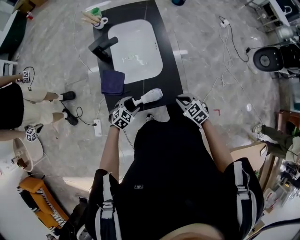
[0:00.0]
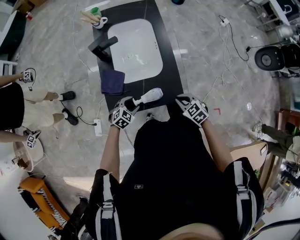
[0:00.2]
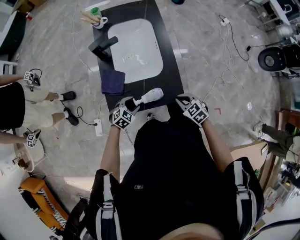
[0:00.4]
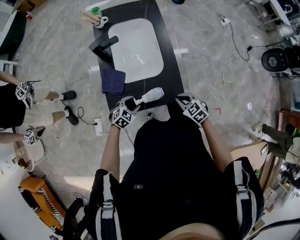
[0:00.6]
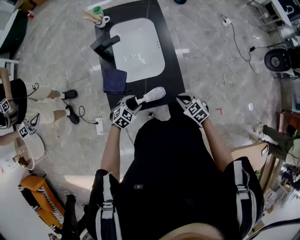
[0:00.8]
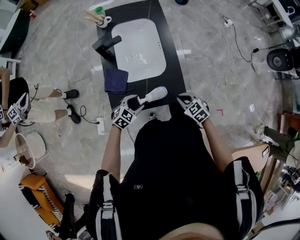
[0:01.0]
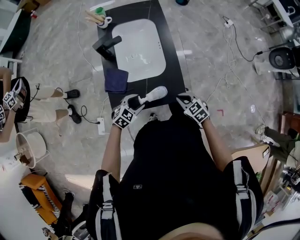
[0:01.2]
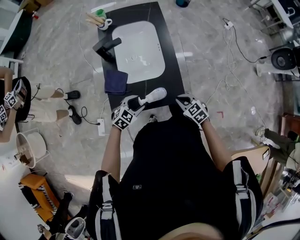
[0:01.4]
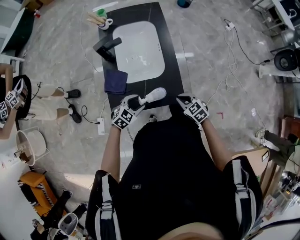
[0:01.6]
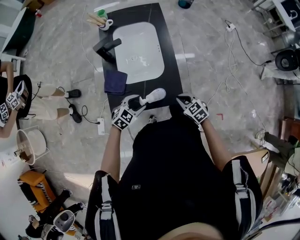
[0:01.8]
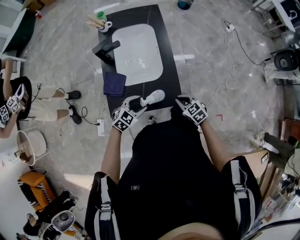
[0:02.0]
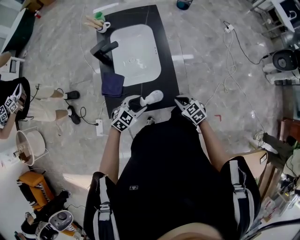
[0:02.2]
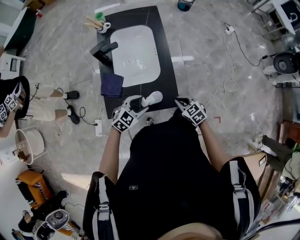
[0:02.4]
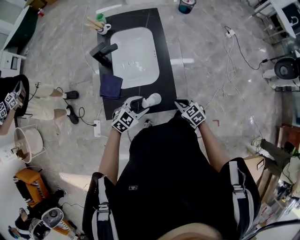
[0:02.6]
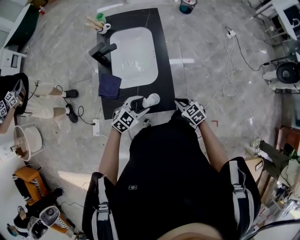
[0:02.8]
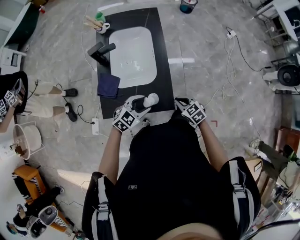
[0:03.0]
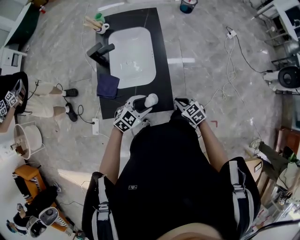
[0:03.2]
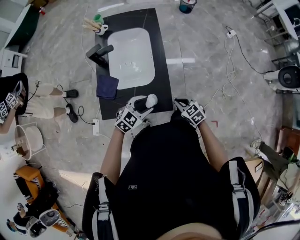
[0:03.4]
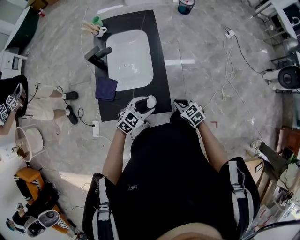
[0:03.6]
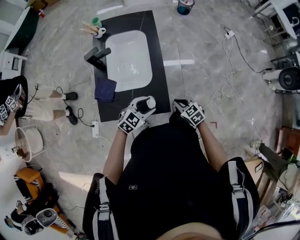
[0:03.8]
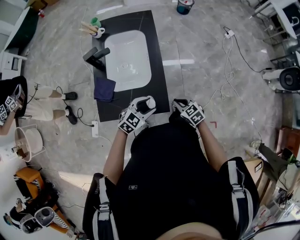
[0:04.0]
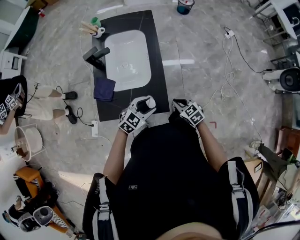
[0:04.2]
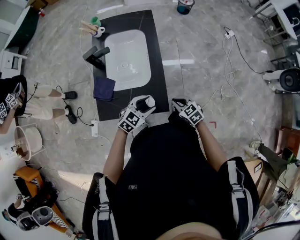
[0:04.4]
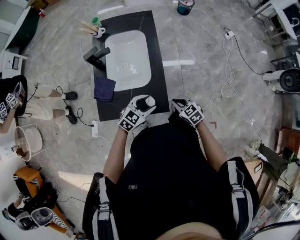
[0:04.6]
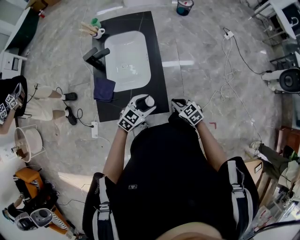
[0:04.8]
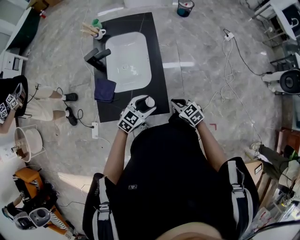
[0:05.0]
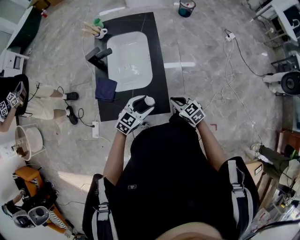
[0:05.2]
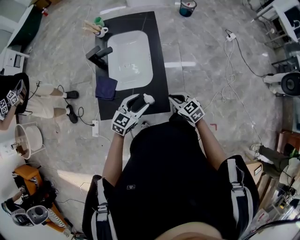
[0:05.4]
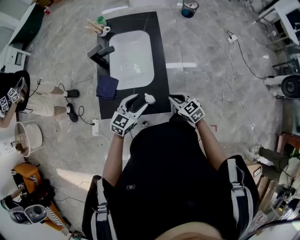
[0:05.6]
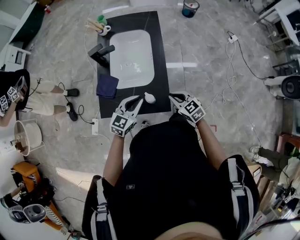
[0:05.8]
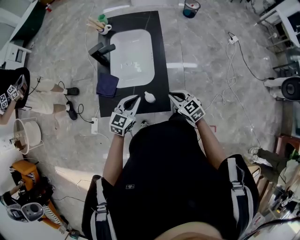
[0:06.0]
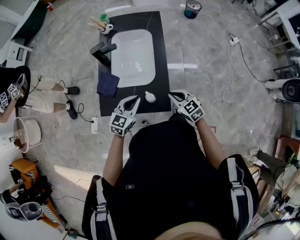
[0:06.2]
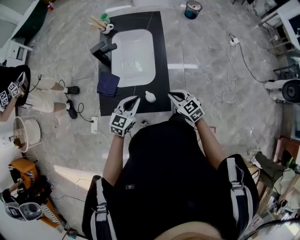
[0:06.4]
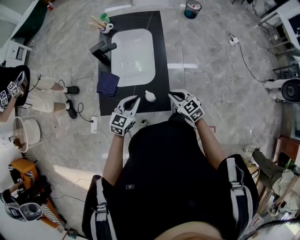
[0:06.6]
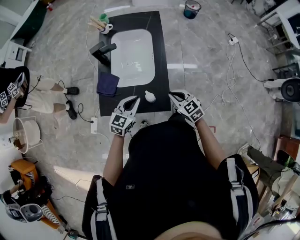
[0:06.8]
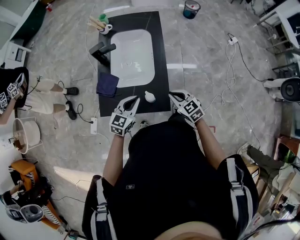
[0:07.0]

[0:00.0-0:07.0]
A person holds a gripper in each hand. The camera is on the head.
0:00.0 to 0:01.4: The left gripper goes approximately 5 cm upward.
0:01.4 to 0:02.8: The left gripper heads to the right and upward, covering about 10 cm; the right gripper travels to the right by roughly 5 cm.
0:02.8 to 0:04.2: The left gripper travels to the right by approximately 10 cm.
0:04.2 to 0:05.6: The left gripper travels to the left by roughly 5 cm, and rotates roughly 20 degrees. The right gripper goes about 5 cm upward.
0:05.6 to 0:07.0: The left gripper closes its fingers.

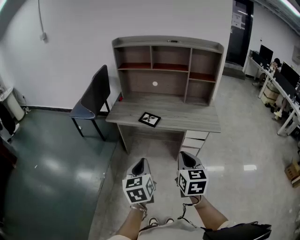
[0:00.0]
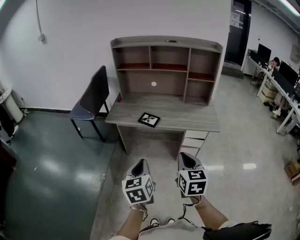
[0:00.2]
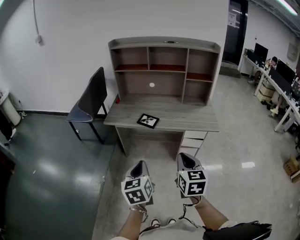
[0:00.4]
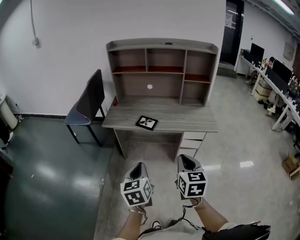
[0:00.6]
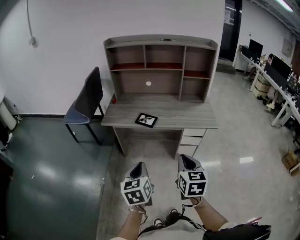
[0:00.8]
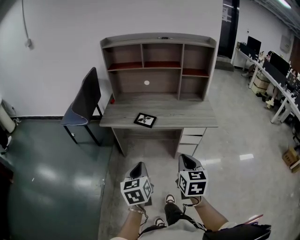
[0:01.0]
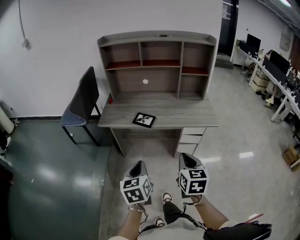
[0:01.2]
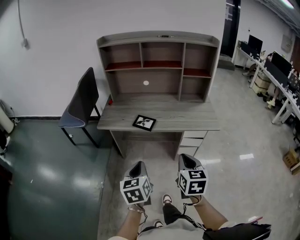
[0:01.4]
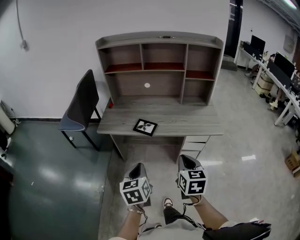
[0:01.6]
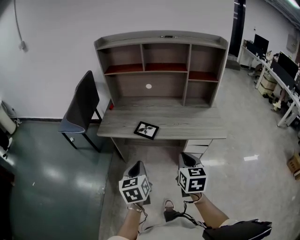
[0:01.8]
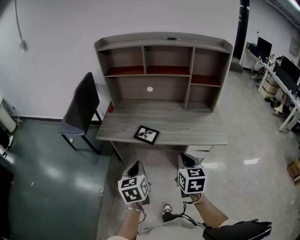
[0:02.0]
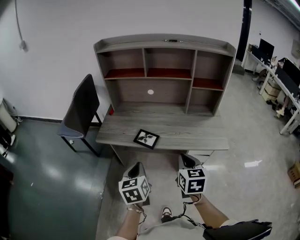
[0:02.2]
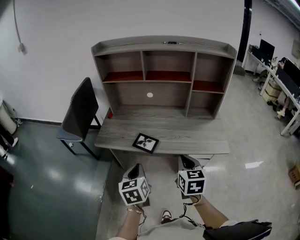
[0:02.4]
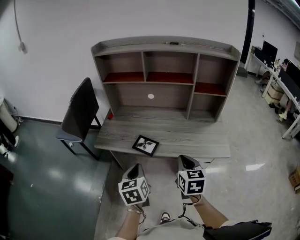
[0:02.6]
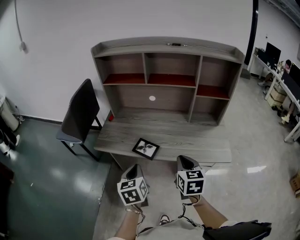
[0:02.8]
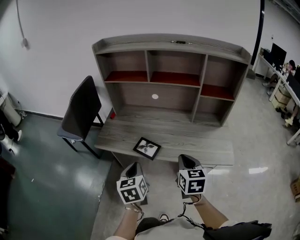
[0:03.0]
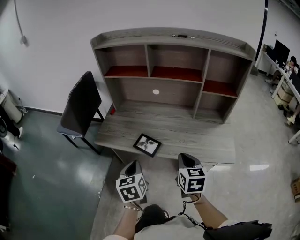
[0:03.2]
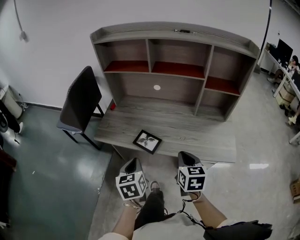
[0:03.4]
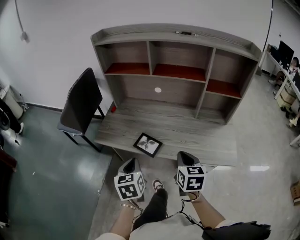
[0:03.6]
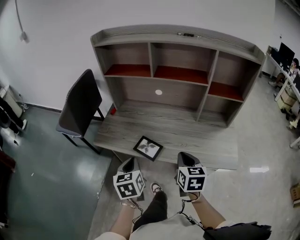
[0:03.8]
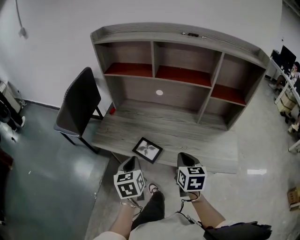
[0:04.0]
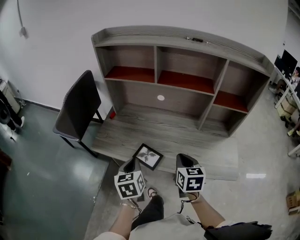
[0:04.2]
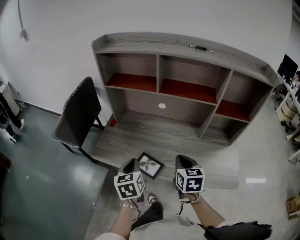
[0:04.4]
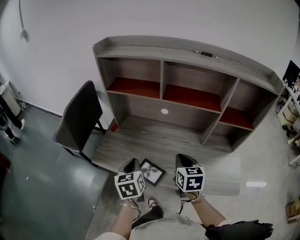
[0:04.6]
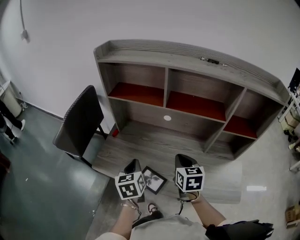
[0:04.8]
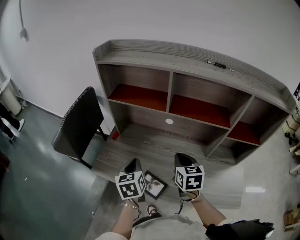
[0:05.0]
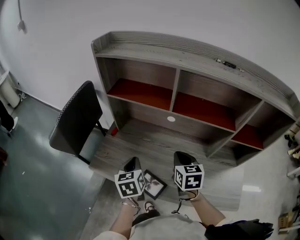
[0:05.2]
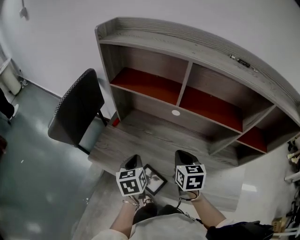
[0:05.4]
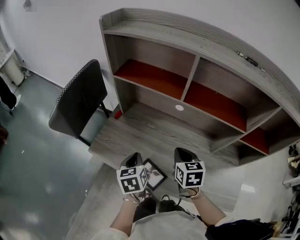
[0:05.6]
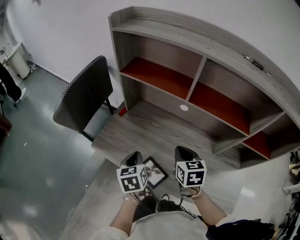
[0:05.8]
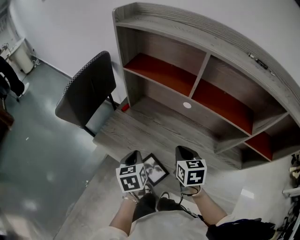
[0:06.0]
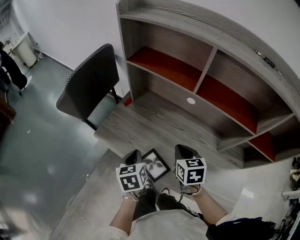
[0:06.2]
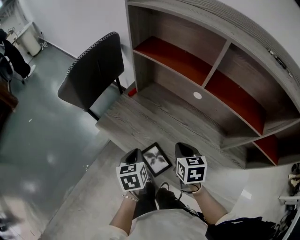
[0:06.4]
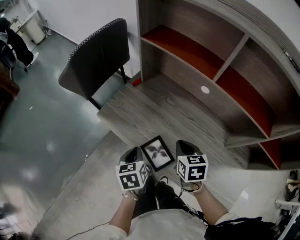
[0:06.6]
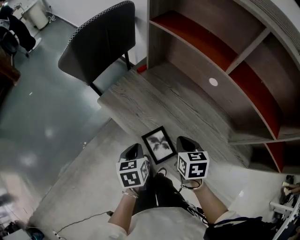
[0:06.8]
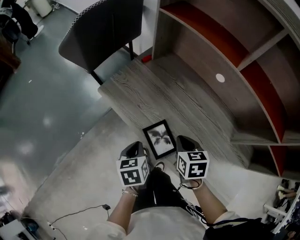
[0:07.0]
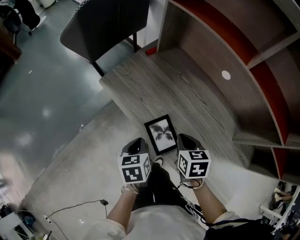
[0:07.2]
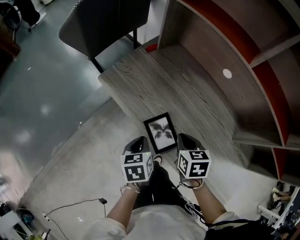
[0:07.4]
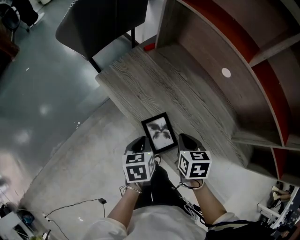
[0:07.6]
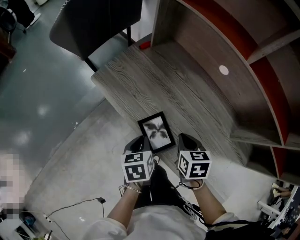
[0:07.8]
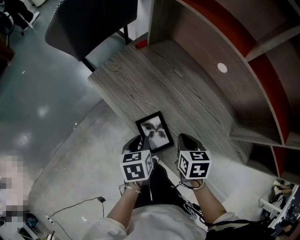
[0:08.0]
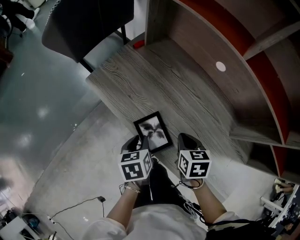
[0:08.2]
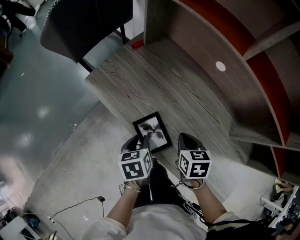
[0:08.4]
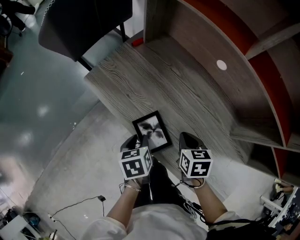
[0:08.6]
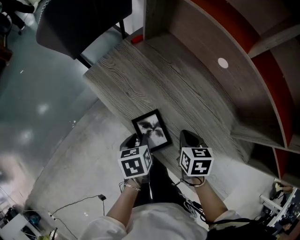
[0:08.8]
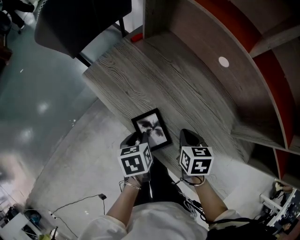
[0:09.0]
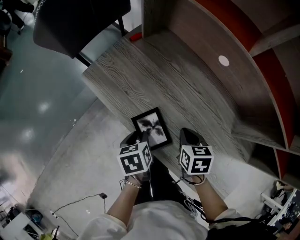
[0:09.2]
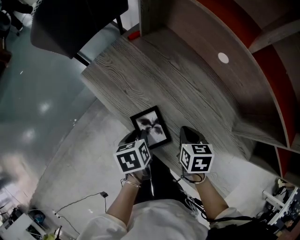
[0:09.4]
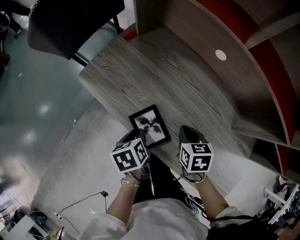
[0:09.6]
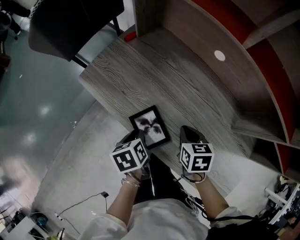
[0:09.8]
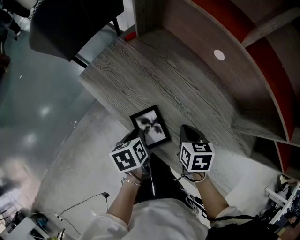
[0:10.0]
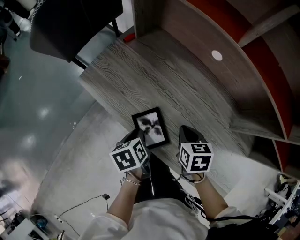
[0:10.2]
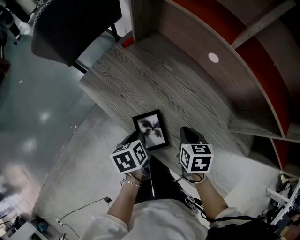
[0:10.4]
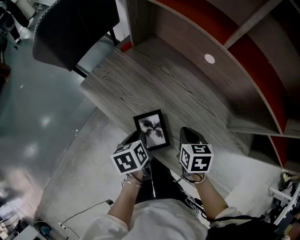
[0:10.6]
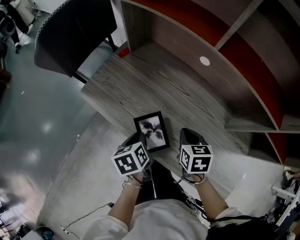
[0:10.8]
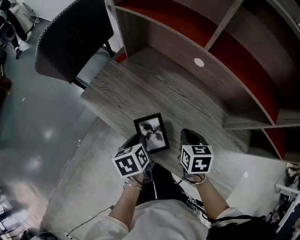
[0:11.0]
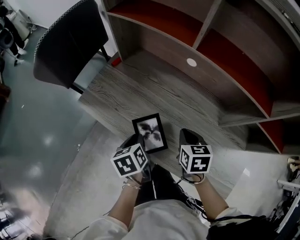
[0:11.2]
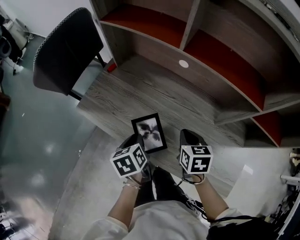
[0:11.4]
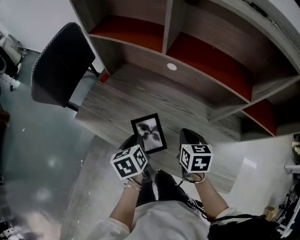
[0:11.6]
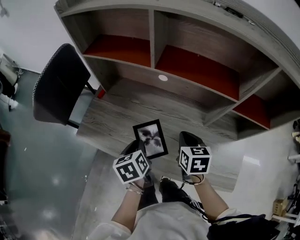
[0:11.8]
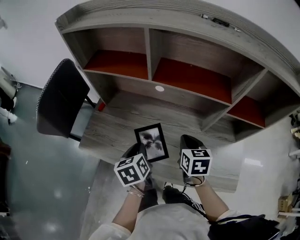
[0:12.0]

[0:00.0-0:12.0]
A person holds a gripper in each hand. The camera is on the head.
0:00.0 to 0:01.6: The grippers both shift forward and downward by some 10 cm.
0:01.6 to 0:03.0: Both grippers move forward, approximately 20 cm.
0:03.0 to 0:04.4: Both grippers move forward, approximately 15 cm.
0:04.4 to 0:06.0: The left gripper is displaced forward and downward by about 10 cm. The right gripper travels forward by roughly 15 cm.
0:06.0 to 0:07.6: Both grippers move downward and backward, some 15 cm. The left gripper swivels approximately 20 degrees. Meanwhile the right gripper turns by roughly 20 degrees.
0:07.6 to 0:09.0: The left gripper opens up; the right gripper shifts by about 5 cm.
0:09.0 to 0:10.4: The grippers move only a little.
0:10.4 to 0:12.0: The right gripper goes about 15 cm upward and to the right, and rotates about 30 degrees; the left gripper moves upward, to the right and forward, some 20 cm, and changes its angle by roughly 30 degrees.

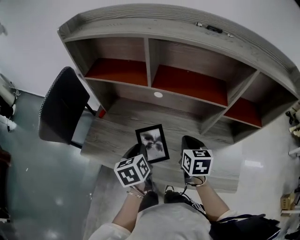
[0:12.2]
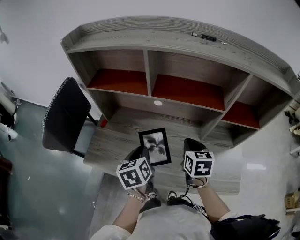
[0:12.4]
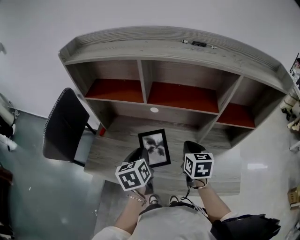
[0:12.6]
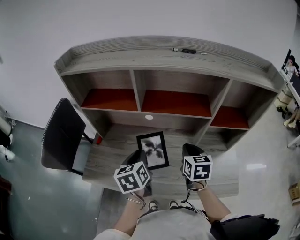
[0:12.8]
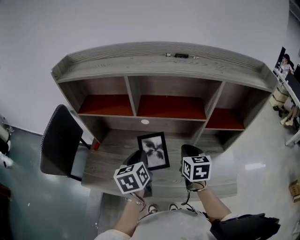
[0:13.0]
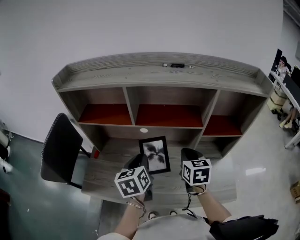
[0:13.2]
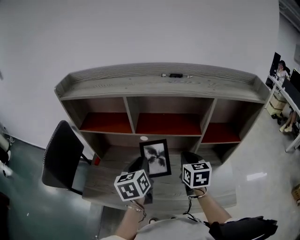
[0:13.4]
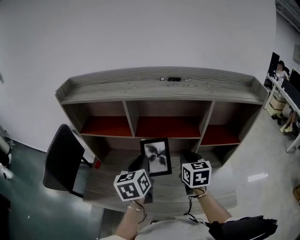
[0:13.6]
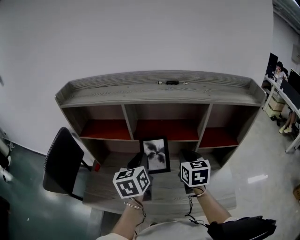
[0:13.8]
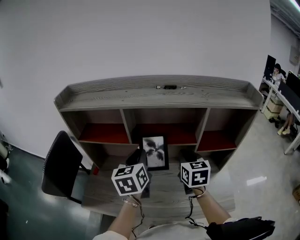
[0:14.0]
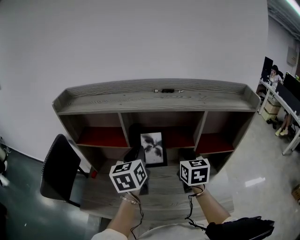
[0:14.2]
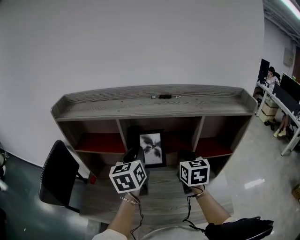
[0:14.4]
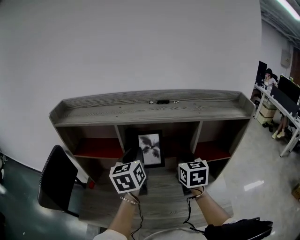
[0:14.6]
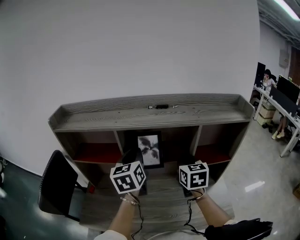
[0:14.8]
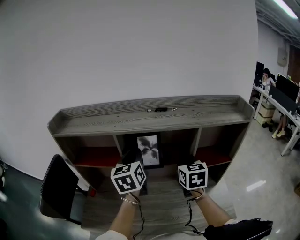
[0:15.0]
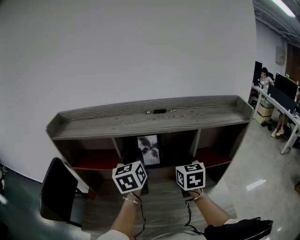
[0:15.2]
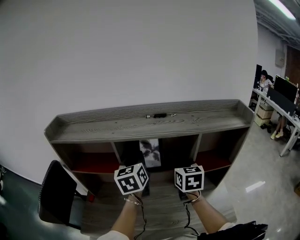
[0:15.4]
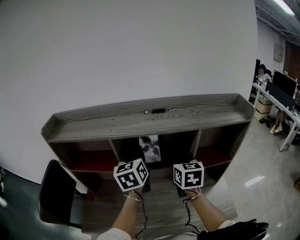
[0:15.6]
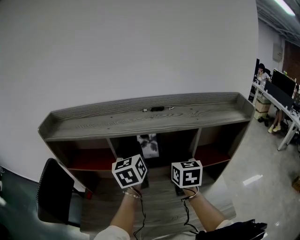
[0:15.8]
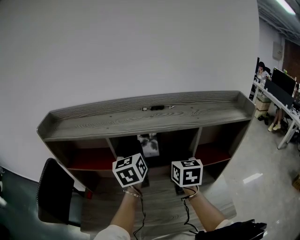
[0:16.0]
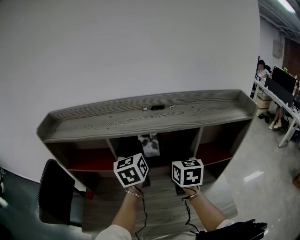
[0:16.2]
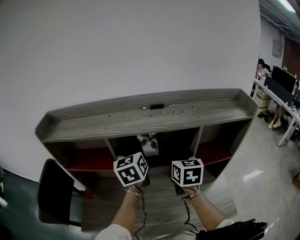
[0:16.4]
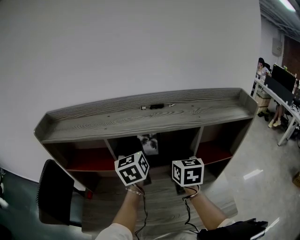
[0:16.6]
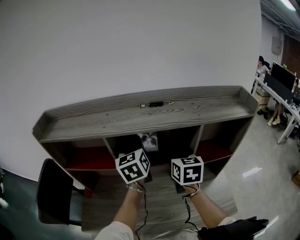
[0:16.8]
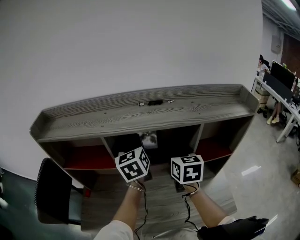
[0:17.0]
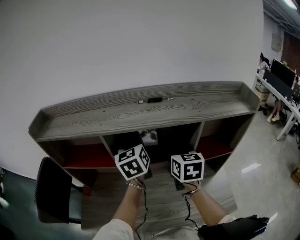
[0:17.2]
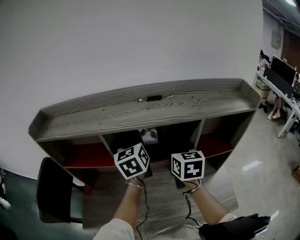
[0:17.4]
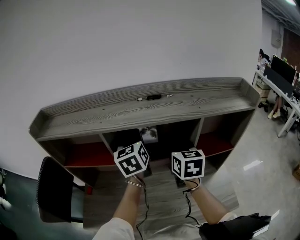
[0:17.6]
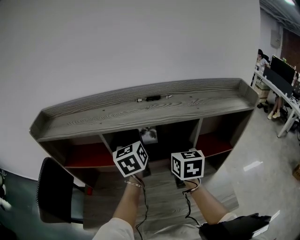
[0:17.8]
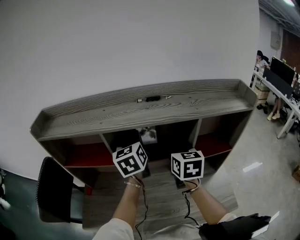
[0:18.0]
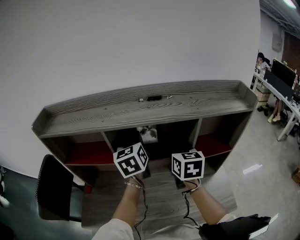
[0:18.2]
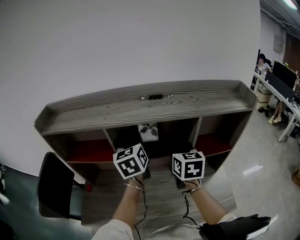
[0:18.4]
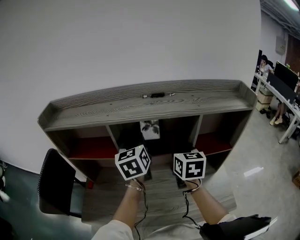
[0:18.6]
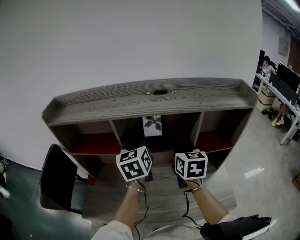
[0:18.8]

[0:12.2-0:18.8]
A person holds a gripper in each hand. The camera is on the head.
0:12.2 to 0:13.8: The left gripper heads upward, forward and to the right, covering about 20 cm, and turns by approximately 30 degrees, while the right gripper shifts approximately 15 cm upward and to the right.
0:13.8 to 0:15.4: The left gripper is displaced forward and upward by roughly 15 cm; the right gripper moves forward and upward, some 10 cm.
0:15.4 to 0:17.2: The left gripper shifts some 5 cm forward.
0:17.2 to 0:18.8: The left gripper shifts some 5 cm backward.
